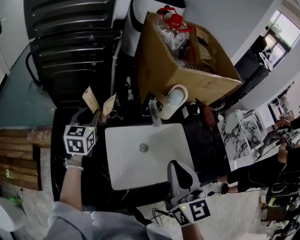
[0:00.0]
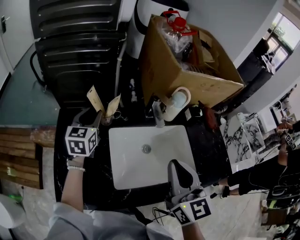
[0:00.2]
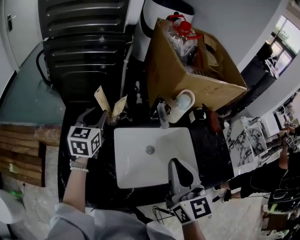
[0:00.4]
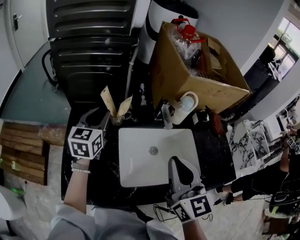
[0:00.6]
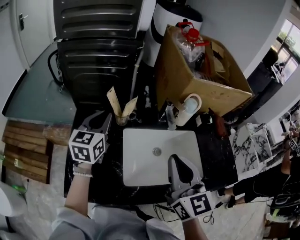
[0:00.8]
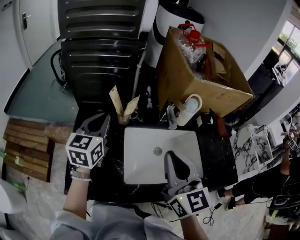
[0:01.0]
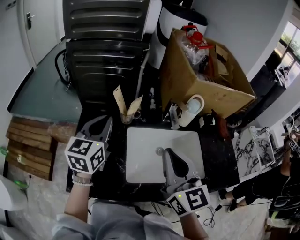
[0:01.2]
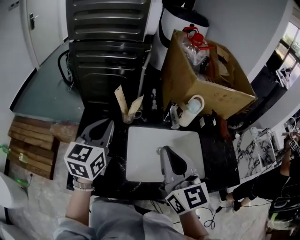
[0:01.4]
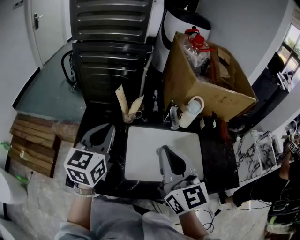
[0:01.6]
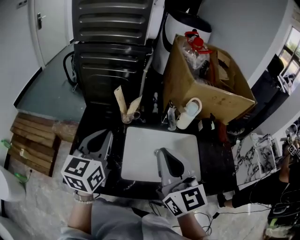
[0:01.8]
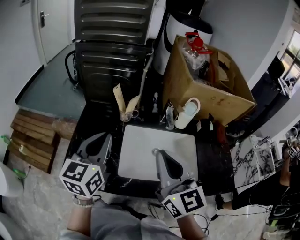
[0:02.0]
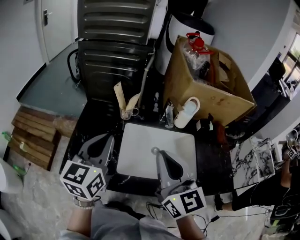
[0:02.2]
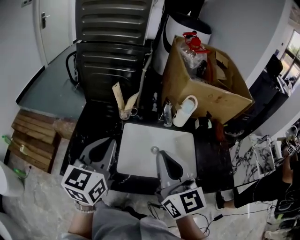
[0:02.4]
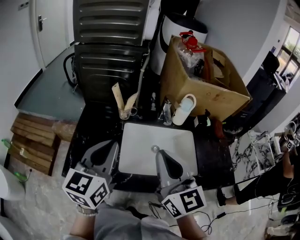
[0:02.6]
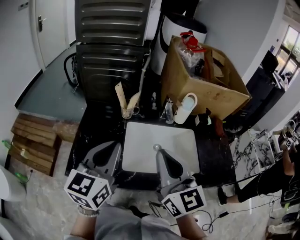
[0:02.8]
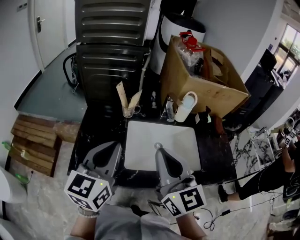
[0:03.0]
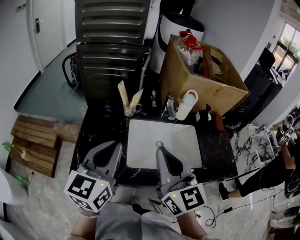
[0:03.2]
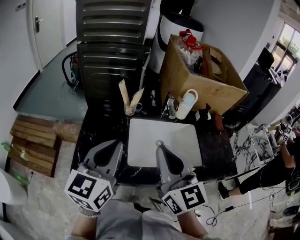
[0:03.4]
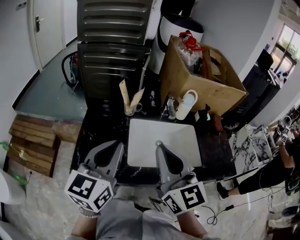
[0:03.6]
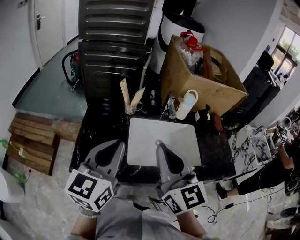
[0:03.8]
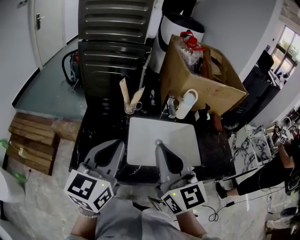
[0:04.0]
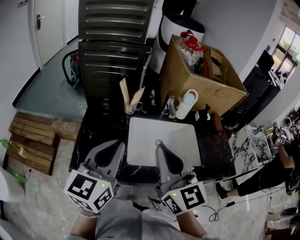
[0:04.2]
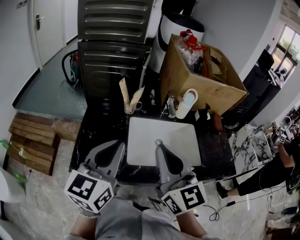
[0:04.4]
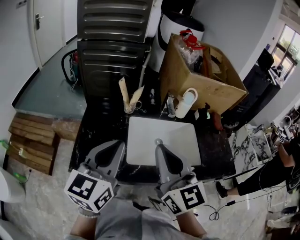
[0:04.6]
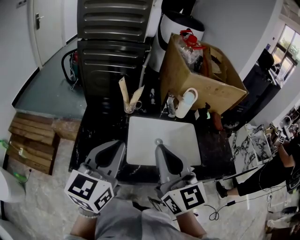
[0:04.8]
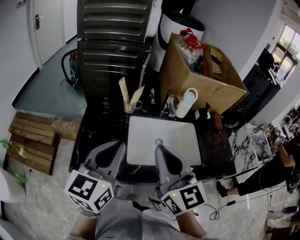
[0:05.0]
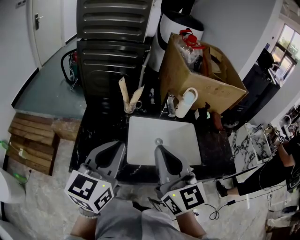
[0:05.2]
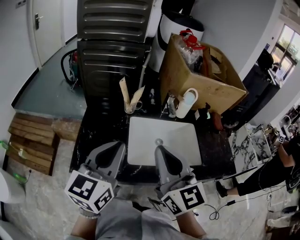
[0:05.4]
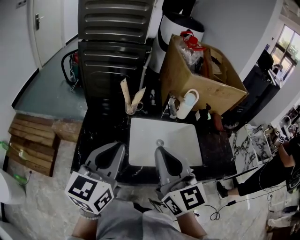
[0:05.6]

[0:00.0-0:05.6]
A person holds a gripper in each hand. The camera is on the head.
0:00.0 to 0:01.4: The left gripper is displaced backward and upward by roughly 20 cm, and closes up; the right gripper heads to the left, covering some 10 cm.
0:01.4 to 0:02.8: The right gripper moves backward, roughly 10 cm. Meanwhile the left gripper moves backward, about 15 cm.
0:02.8 to 0:04.2: The right gripper changes place by about 5 cm.
0:04.2 to 0:05.6: Neither gripper changes place.

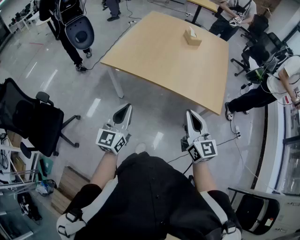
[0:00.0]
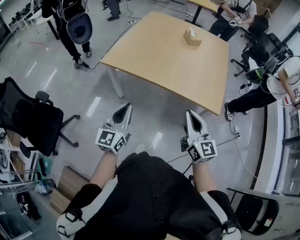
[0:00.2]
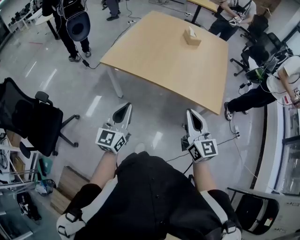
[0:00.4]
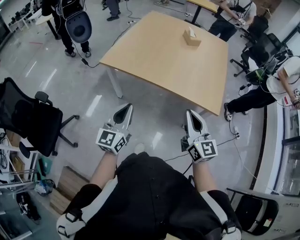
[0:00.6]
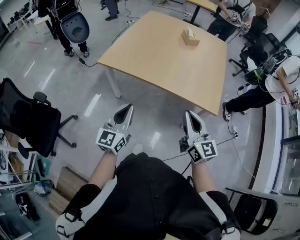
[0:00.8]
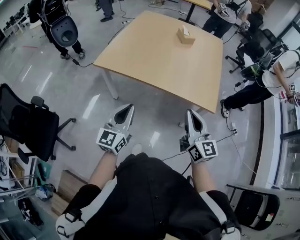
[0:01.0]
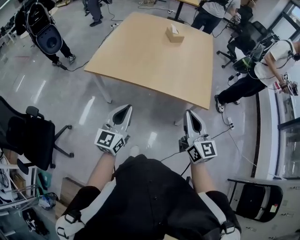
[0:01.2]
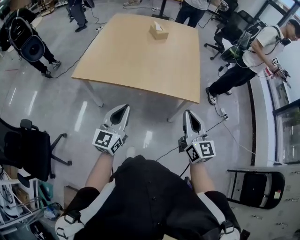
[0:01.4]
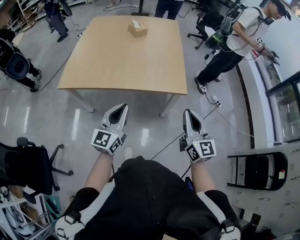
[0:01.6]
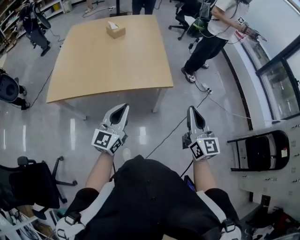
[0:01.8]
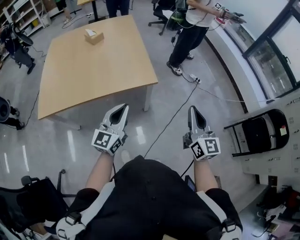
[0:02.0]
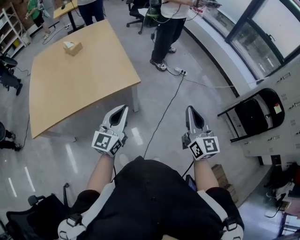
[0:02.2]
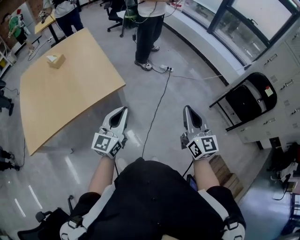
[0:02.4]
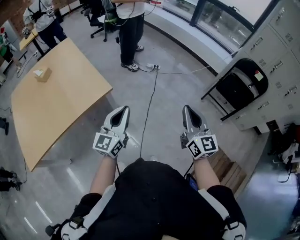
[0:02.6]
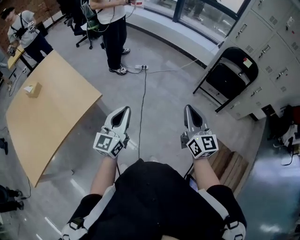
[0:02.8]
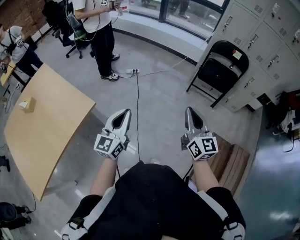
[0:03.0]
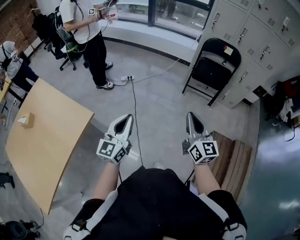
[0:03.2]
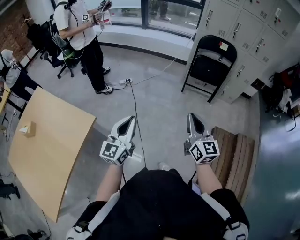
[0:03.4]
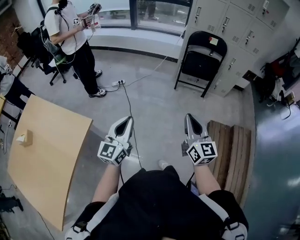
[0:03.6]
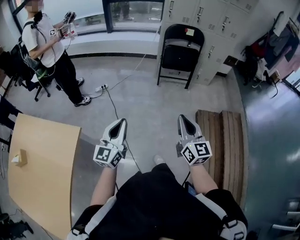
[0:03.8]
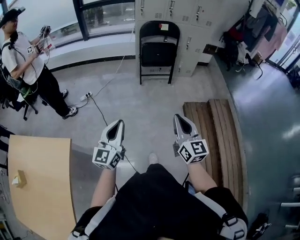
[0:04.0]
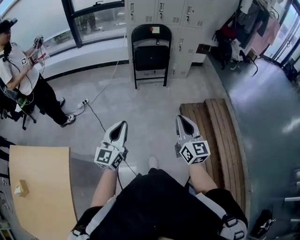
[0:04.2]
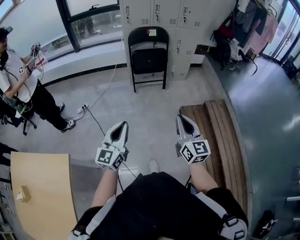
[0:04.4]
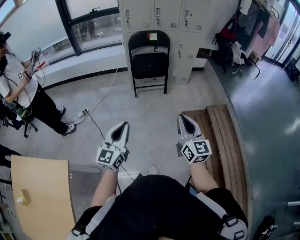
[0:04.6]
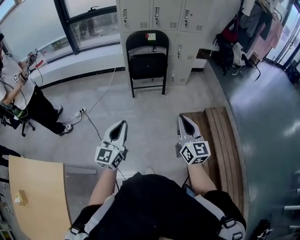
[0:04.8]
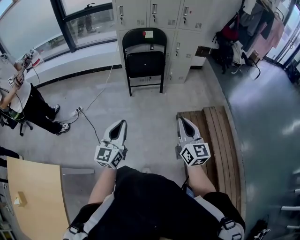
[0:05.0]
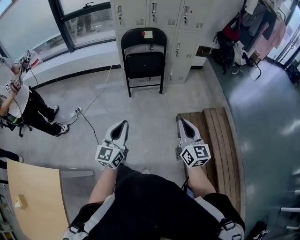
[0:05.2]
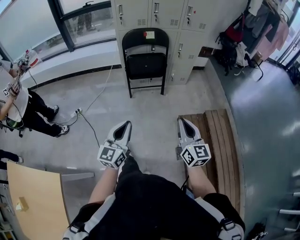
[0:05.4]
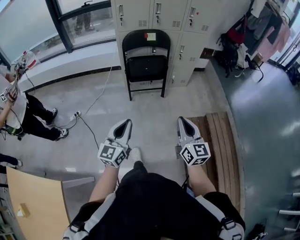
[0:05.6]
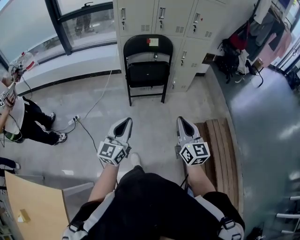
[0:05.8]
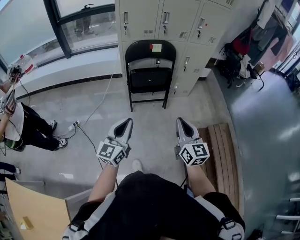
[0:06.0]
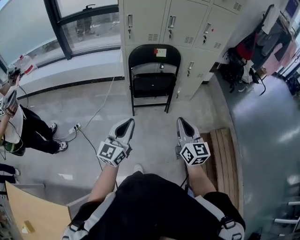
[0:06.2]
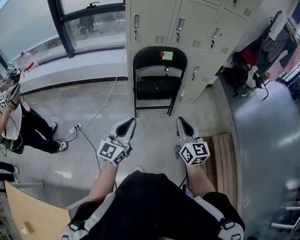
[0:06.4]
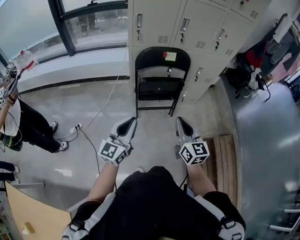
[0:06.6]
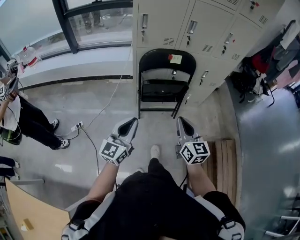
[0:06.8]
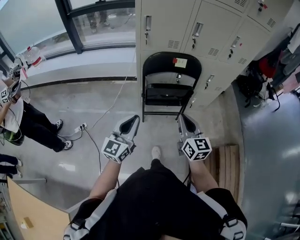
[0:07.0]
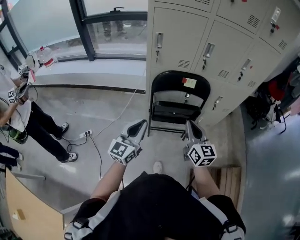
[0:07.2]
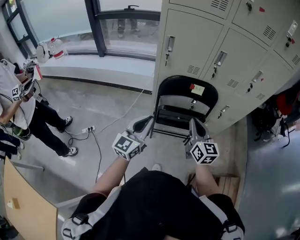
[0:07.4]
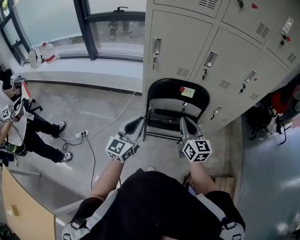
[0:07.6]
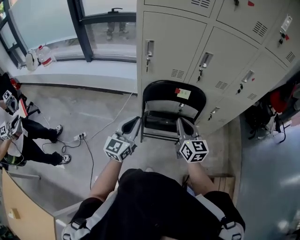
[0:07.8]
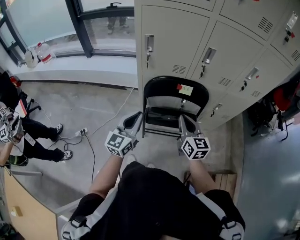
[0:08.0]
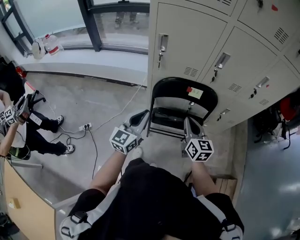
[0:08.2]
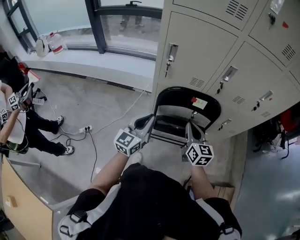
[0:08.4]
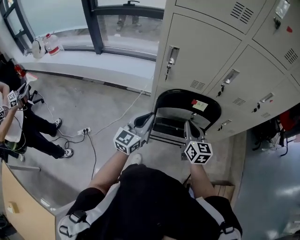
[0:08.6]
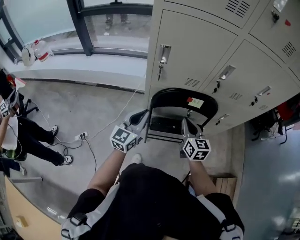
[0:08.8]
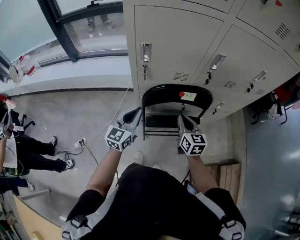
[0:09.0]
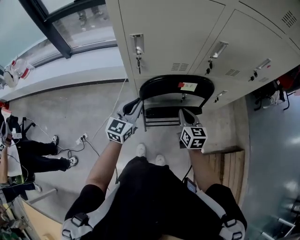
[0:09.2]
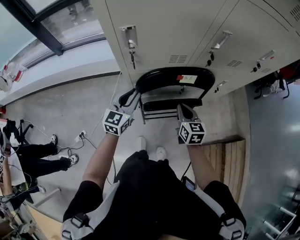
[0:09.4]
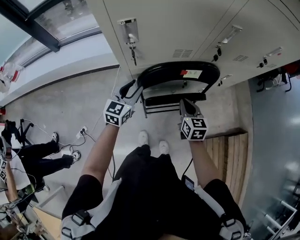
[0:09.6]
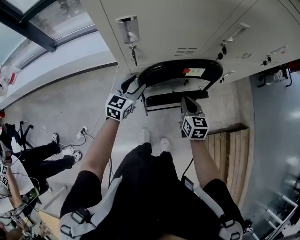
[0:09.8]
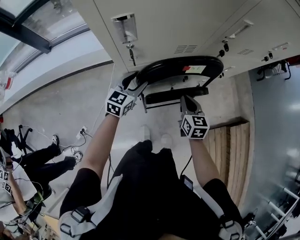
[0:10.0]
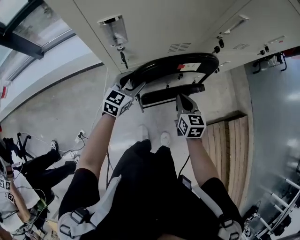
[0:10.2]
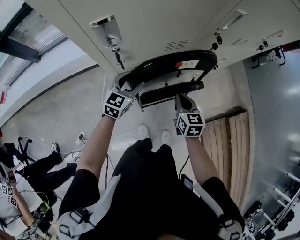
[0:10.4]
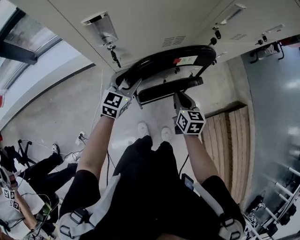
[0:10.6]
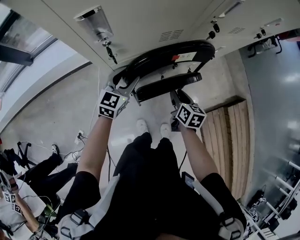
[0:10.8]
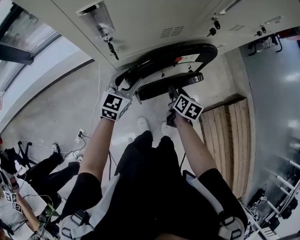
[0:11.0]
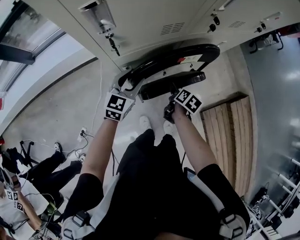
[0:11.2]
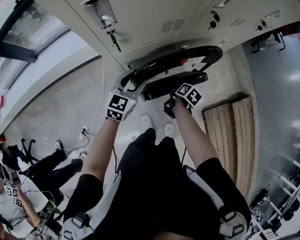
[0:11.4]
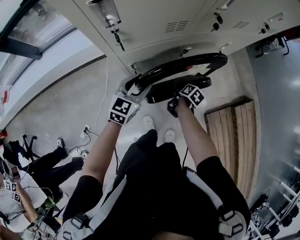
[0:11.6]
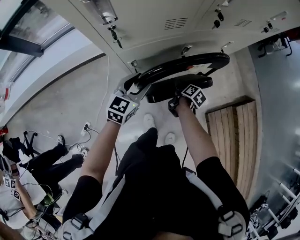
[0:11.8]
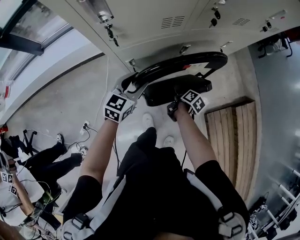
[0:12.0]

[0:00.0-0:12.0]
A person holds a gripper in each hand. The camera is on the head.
0:00.0 to 0:01.6: The grippers both shift to the right by roughly 15 cm. The right gripper changes its angle by roughly 20 degrees. The left gripper turns by roughly 20 degrees.
0:01.6 to 0:03.0: The pair of grippers is taken some 40 cm. The right gripper changes its angle by some 60 degrees, while the left gripper turns by some 60 degrees.
0:03.0 to 0:04.4: The left gripper changes place by some 20 cm, and changes its angle by about 40 degrees. The right gripper changes place by about 20 cm, and changes its angle by roughly 40 degrees.
0:04.4 to 0:06.0: The grippers both shift forward by approximately 35 cm.
0:06.0 to 0:07.6: The grippers both shift forward by roughly 35 cm.
0:07.6 to 0:09.0: The left gripper shifts approximately 20 cm forward. Meanwhile the right gripper is displaced forward and downward by roughly 15 cm.
0:09.0 to 0:10.4: The right gripper moves downward, about 10 cm, and rotates about 20 degrees, while the left gripper moves downward and forward, roughly 20 cm, changes its angle by about 30 degrees, and opens its fingers.
0:10.4 to 0:12.0: The left gripper heads backward, covering roughly 5 cm, while the right gripper is displaced downward by approximately 15 cm, rolls clockwise, seen from behind, by some 60 degrees, and opens.

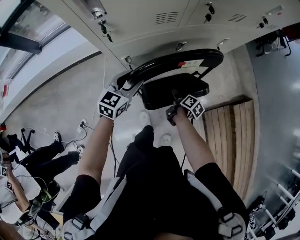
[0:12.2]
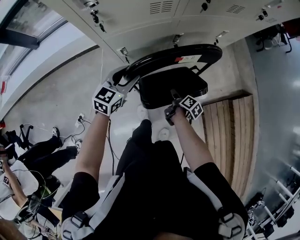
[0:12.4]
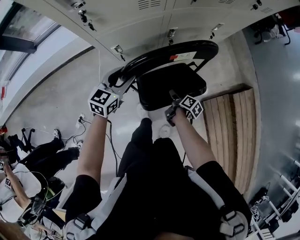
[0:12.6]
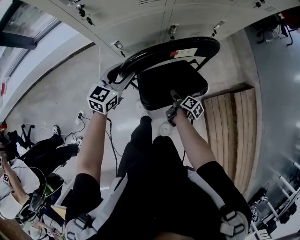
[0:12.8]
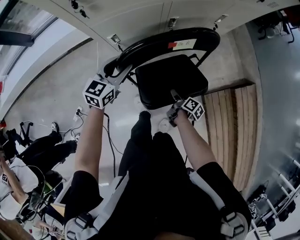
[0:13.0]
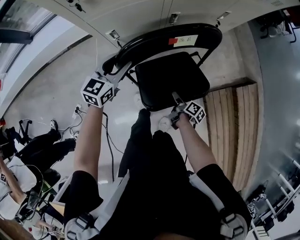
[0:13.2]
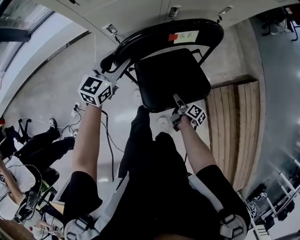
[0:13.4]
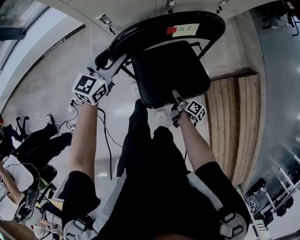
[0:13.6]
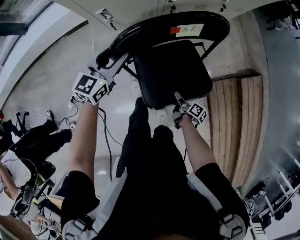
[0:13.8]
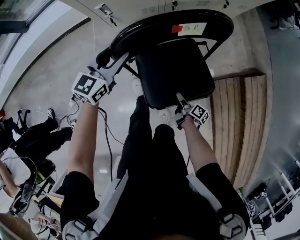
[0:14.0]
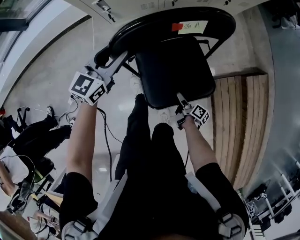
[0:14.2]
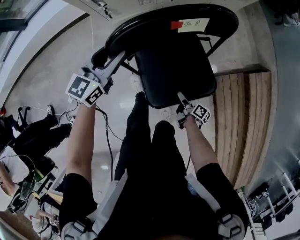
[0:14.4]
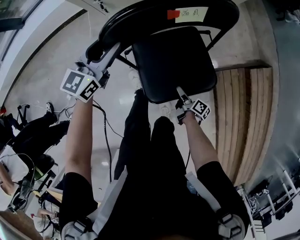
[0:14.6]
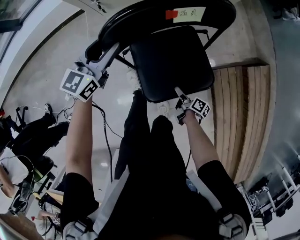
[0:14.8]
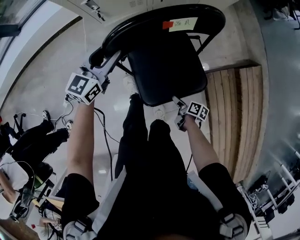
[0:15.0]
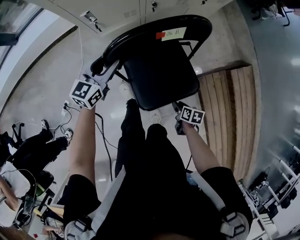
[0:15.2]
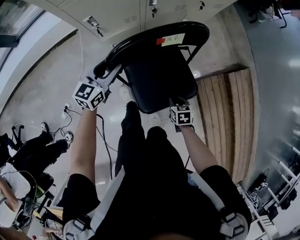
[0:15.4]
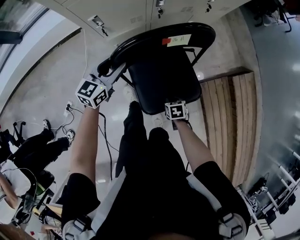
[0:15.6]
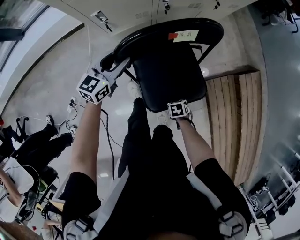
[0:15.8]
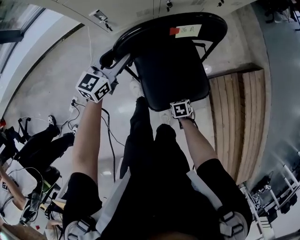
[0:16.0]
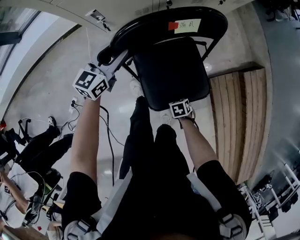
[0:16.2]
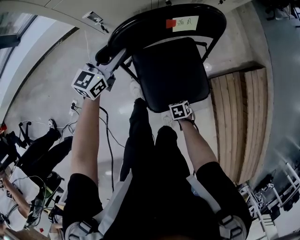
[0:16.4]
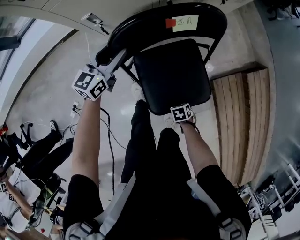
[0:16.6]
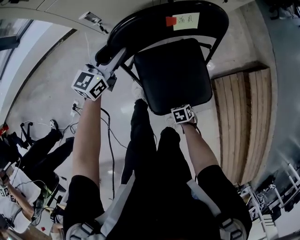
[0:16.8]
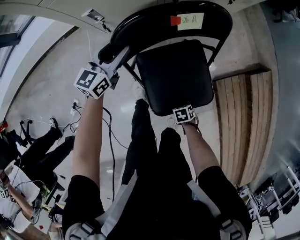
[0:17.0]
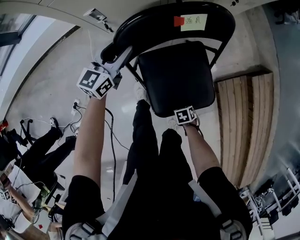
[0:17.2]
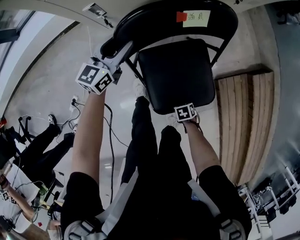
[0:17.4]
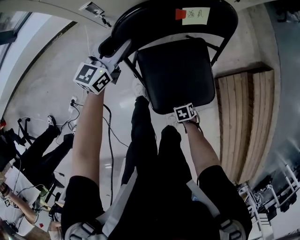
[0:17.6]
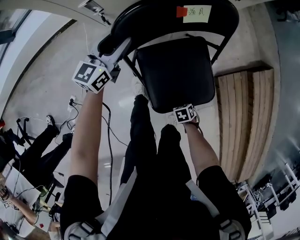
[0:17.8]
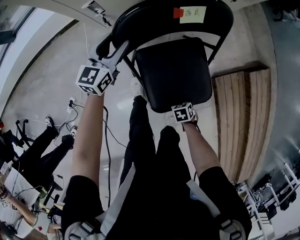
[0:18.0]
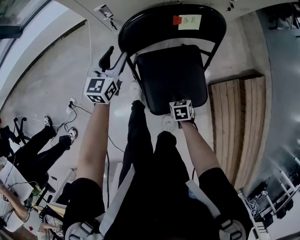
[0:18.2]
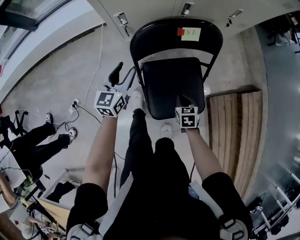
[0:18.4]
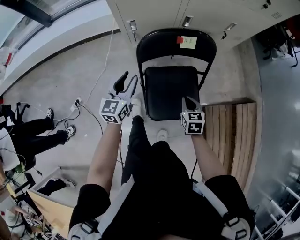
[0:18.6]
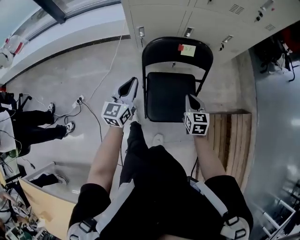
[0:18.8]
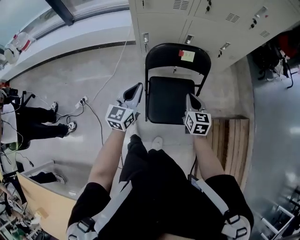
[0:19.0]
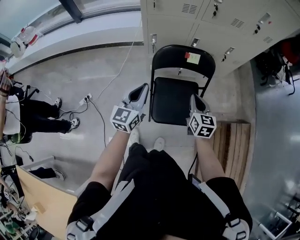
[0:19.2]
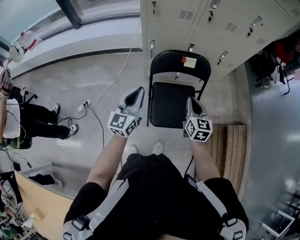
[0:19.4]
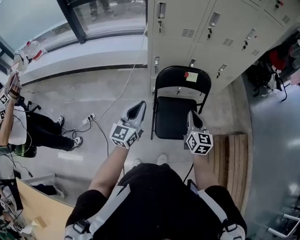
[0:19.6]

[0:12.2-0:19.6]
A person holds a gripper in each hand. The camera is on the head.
0:12.2 to 0:13.6: The left gripper ends up about 5 cm from where it was; the right gripper travels backward, downward and to the right by roughly 20 cm.
0:13.6 to 0:15.2: The left gripper changes place by some 5 cm; the right gripper travels backward and to the right by some 10 cm, and turns by some 40 degrees.
0:15.2 to 0:16.6: The left gripper shifts by some 10 cm; the right gripper shifts approximately 10 cm downward, turns by roughly 40 degrees, and closes its fingers.
0:16.6 to 0:18.2: The left gripper changes place by approximately 5 cm. Meanwhile the right gripper moves about 10 cm.
0:18.2 to 0:19.6: The left gripper travels upward and backward by roughly 40 cm, swivels roughly 20 degrees, and closes its fingers. Meanwhile the right gripper is displaced upward by approximately 40 cm, and tilts its fingers approximately 50 degrees upward.
